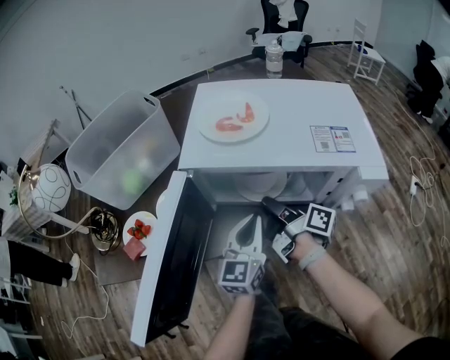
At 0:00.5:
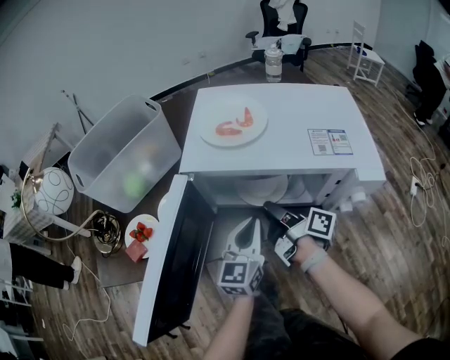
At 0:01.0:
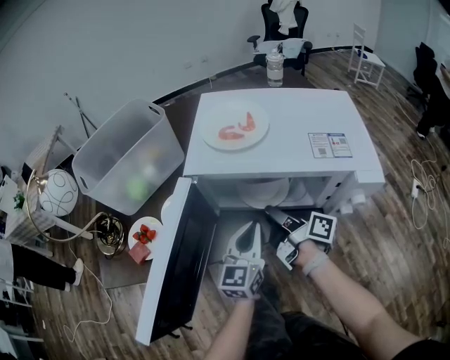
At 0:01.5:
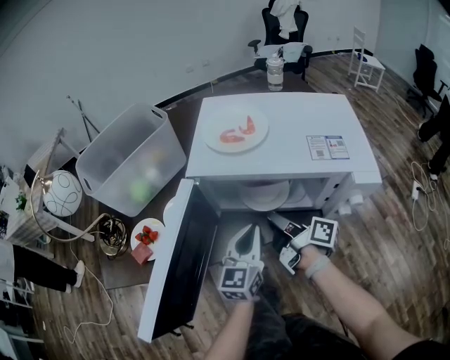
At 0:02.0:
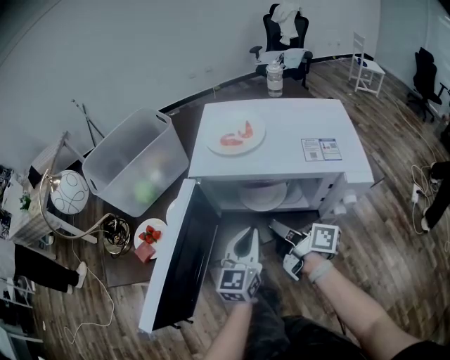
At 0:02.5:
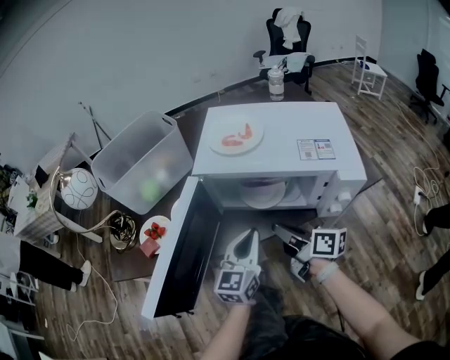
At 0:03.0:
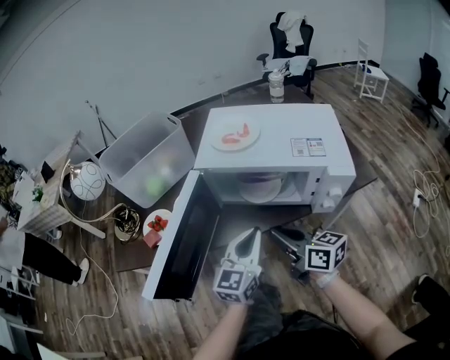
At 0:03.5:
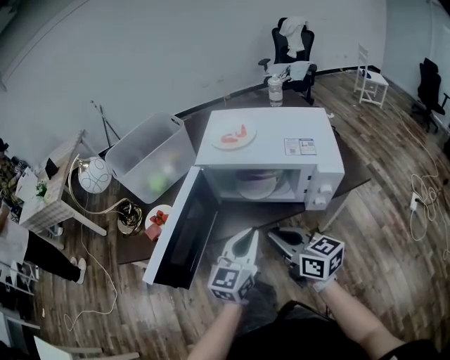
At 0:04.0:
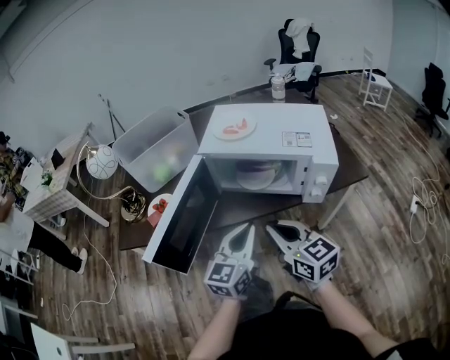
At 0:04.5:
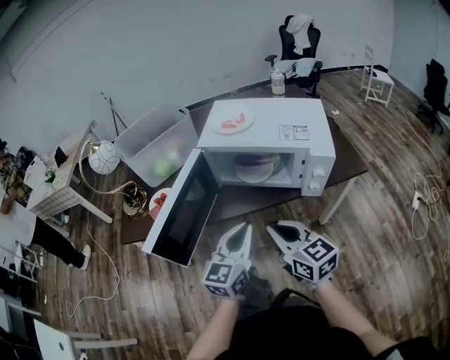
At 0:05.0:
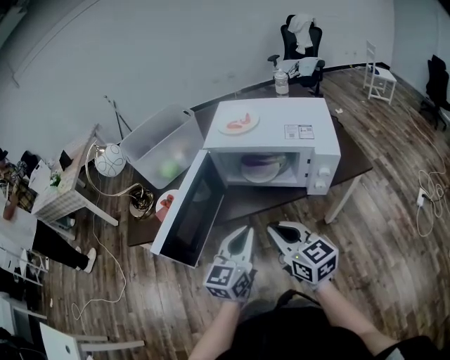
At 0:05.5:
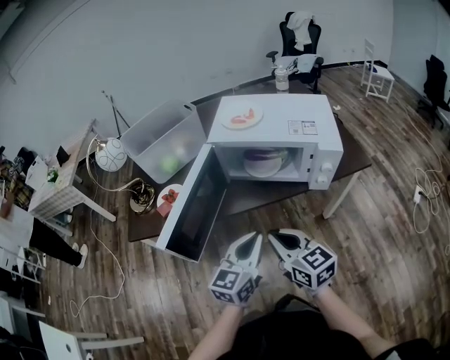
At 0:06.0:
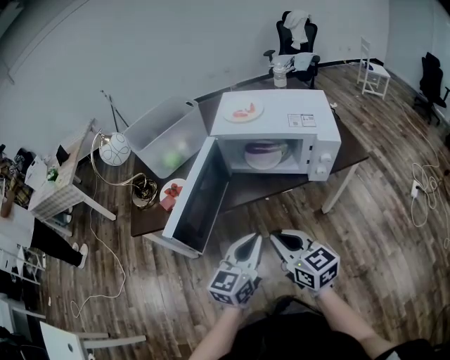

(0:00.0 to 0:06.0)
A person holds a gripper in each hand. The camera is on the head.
0:02.0 - 0:04.0: The left gripper shifts by approximately 15 cm.
0:04.0 - 0:06.0: The left gripper ends up approximately 10 cm from where it was.

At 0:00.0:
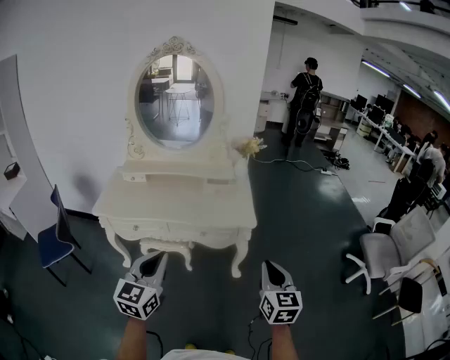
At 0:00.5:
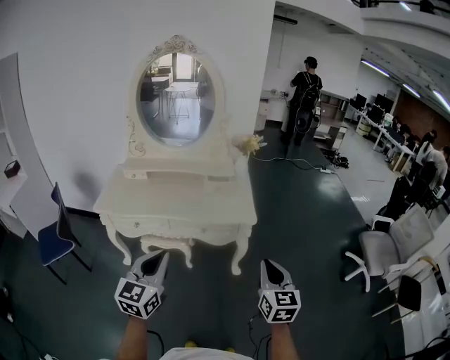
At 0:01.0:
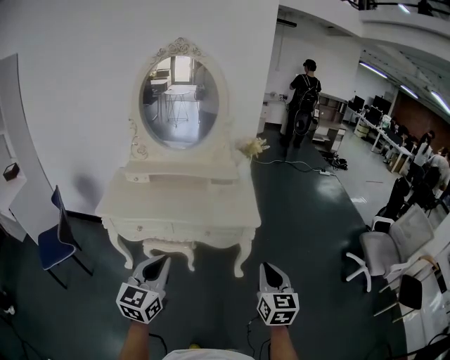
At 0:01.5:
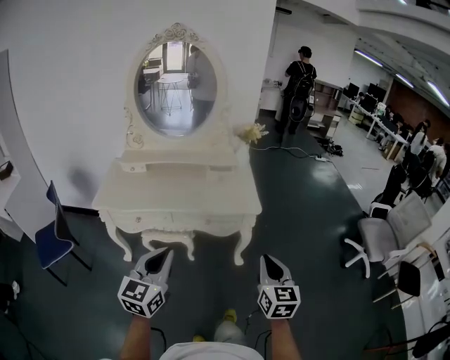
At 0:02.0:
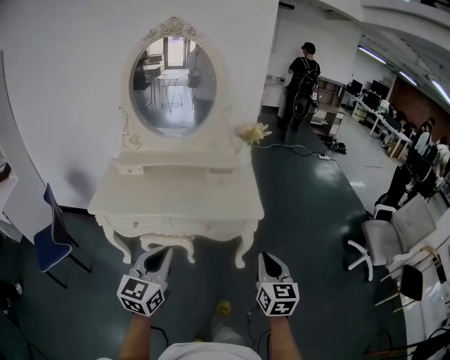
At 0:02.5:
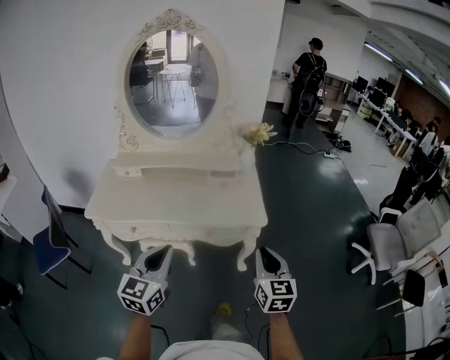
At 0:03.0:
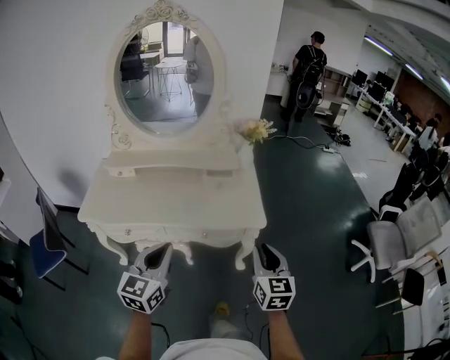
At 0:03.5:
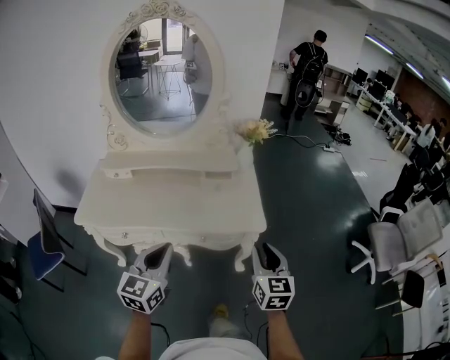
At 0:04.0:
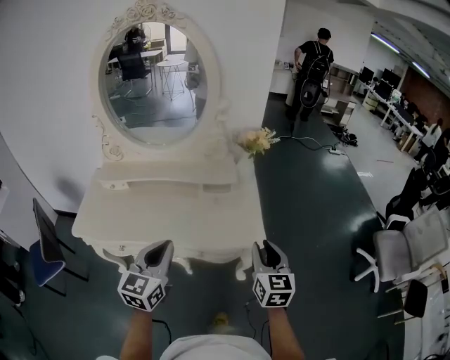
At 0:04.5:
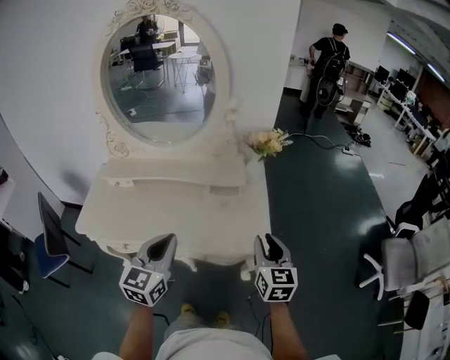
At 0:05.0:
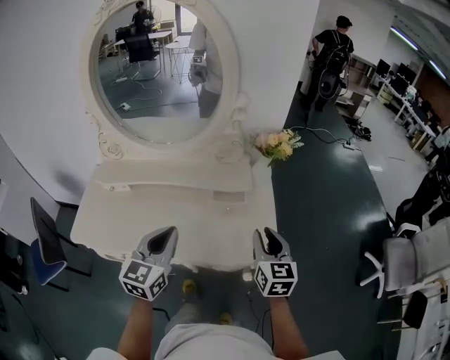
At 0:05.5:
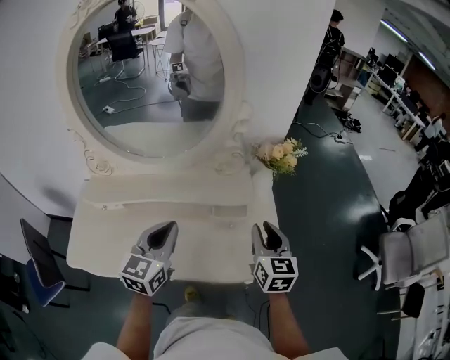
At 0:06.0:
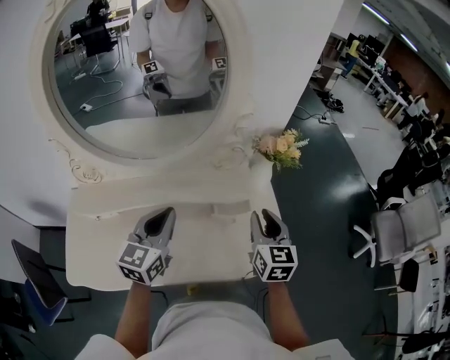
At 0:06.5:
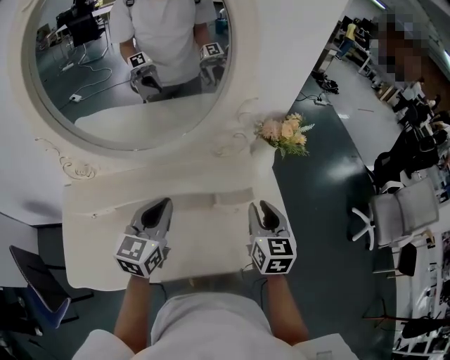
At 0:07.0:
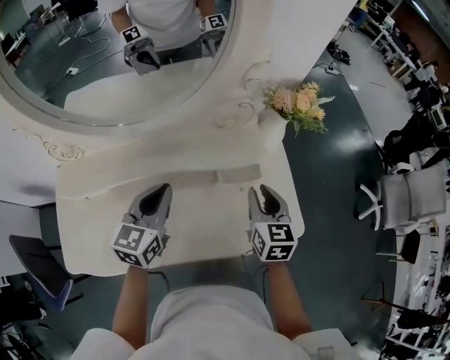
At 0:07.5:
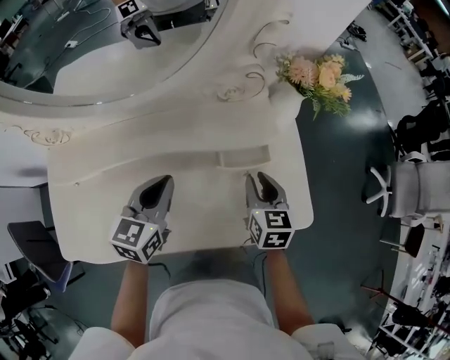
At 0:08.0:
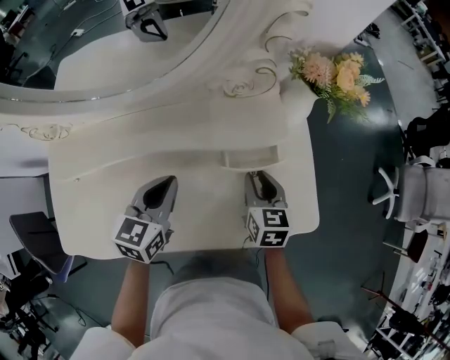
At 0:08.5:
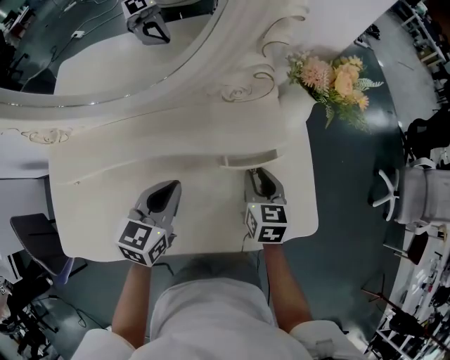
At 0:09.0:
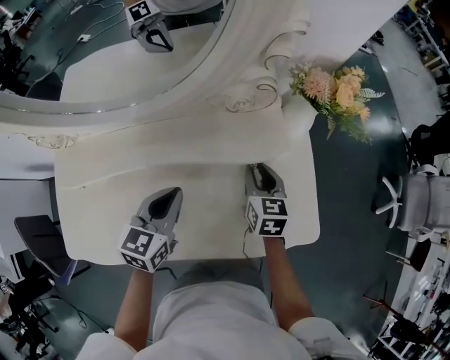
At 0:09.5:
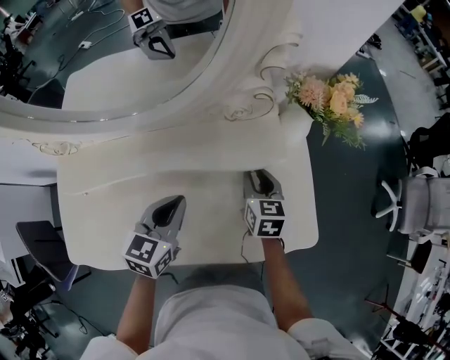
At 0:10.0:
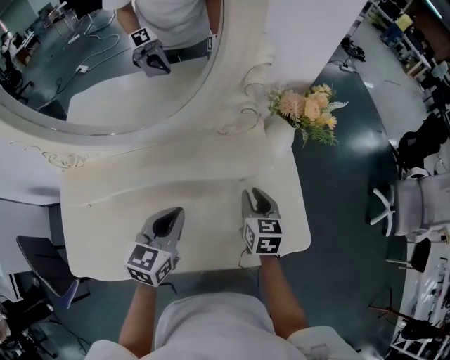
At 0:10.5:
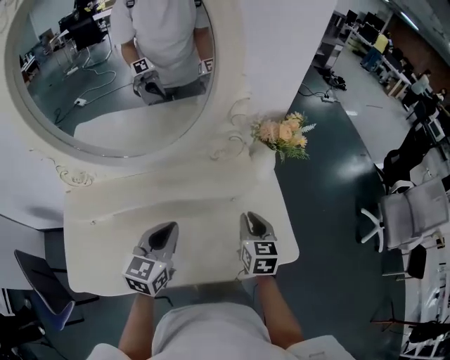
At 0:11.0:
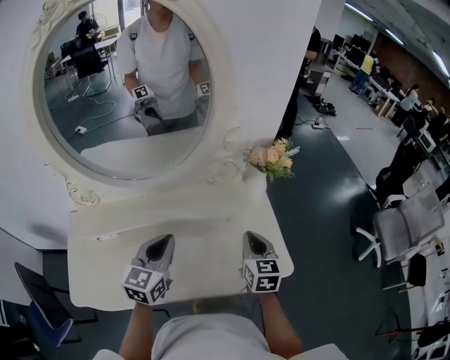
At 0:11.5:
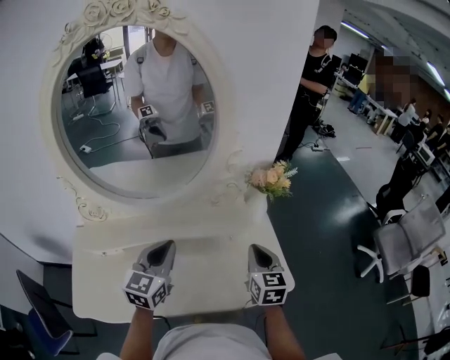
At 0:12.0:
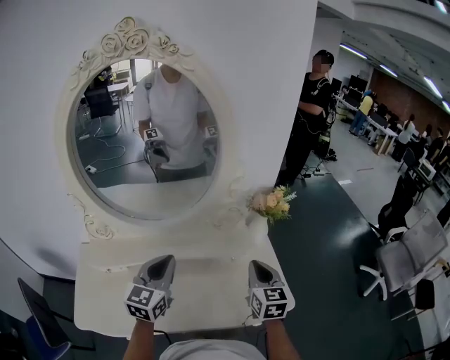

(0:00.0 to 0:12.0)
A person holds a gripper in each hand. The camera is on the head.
0:00.0 - 0:02.0: The right gripper shifts roughly 5 cm to the left, while the left gripper moves forward, about 5 cm.
0:02.0 - 0:04.0: Both grippers travel together forward, some 30 cm. The right gripper opens up.
0:04.0 - 0:06.0: The grippers both shift forward and to the left by roughly 35 cm.
0:06.0 - 0:08.0: The two grippers go approximately 20 cm downward. The right gripper swivels some 20 degrees. The left gripper swivels some 20 degrees.
0:08.0 - 0:10.0: The left gripper moves approximately 5 cm.
0:10.0 - 0:12.0: The right gripper shifts approximately 25 cm upward and backward, and closes up; the left gripper goes roughly 20 cm upward, and rotates about 20 degrees.

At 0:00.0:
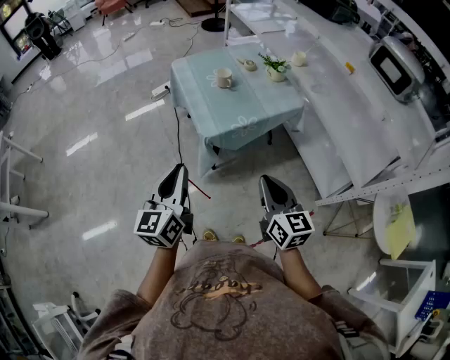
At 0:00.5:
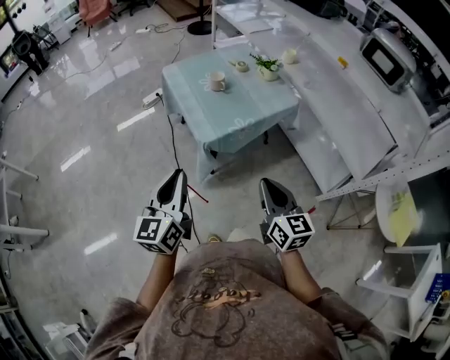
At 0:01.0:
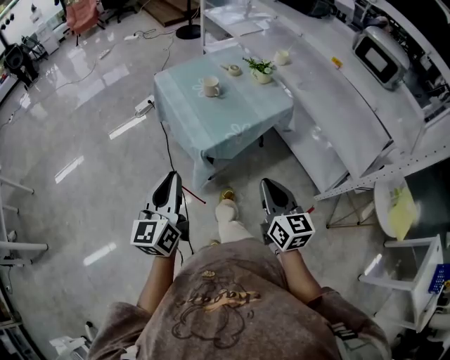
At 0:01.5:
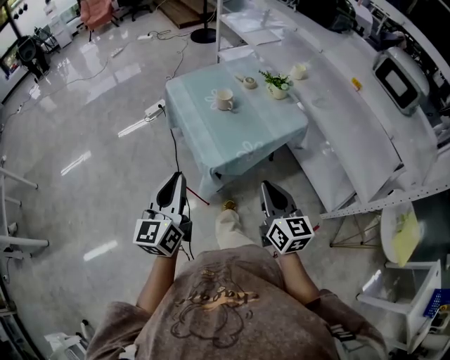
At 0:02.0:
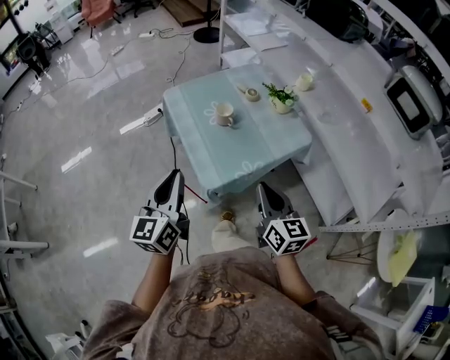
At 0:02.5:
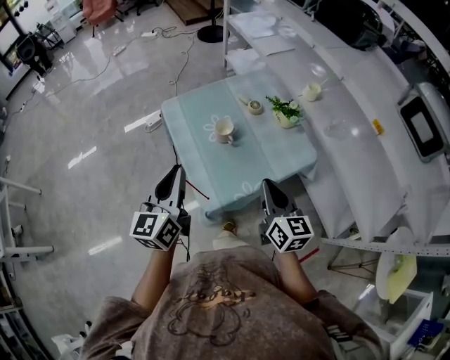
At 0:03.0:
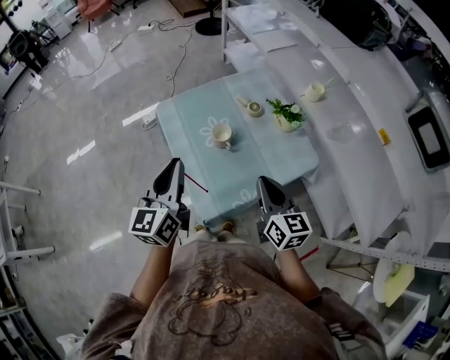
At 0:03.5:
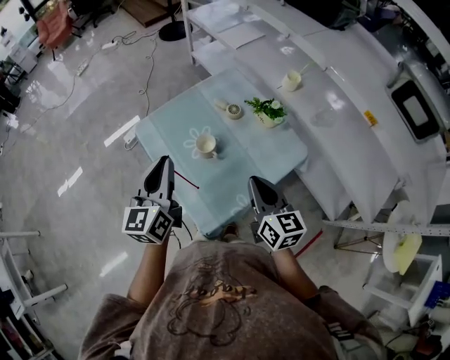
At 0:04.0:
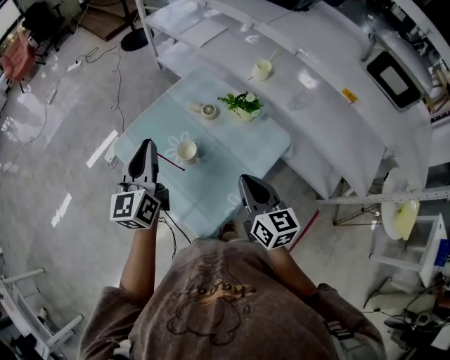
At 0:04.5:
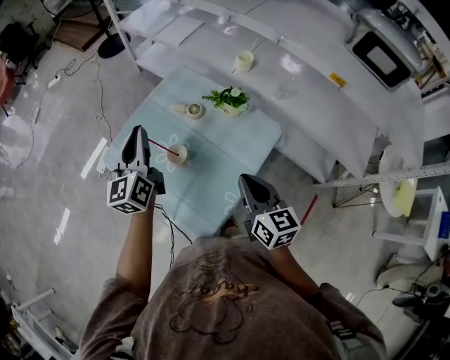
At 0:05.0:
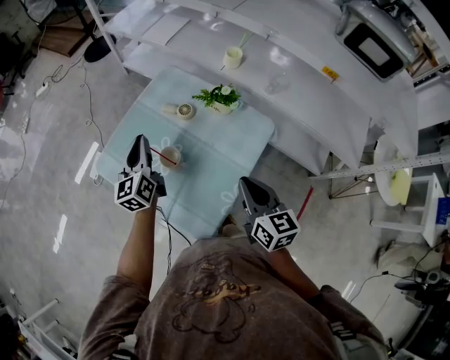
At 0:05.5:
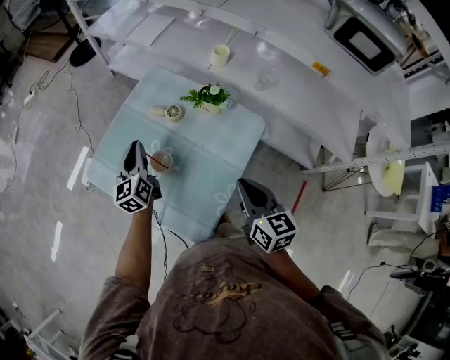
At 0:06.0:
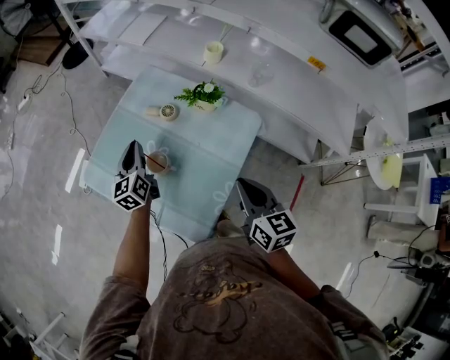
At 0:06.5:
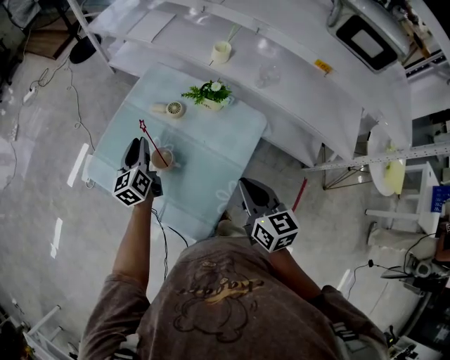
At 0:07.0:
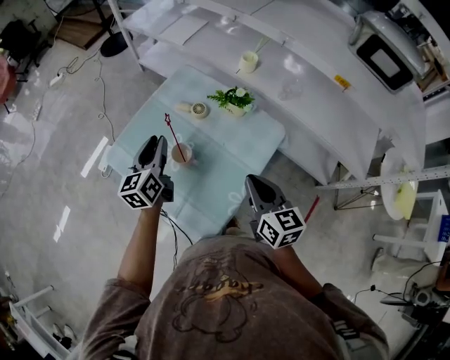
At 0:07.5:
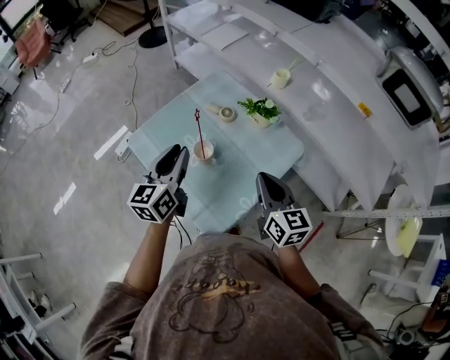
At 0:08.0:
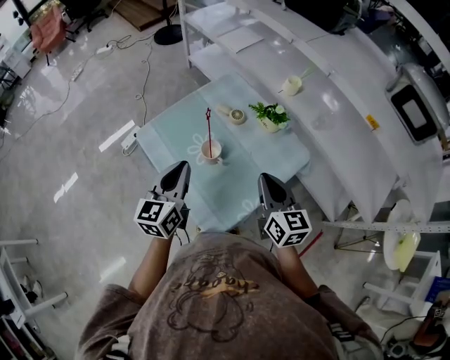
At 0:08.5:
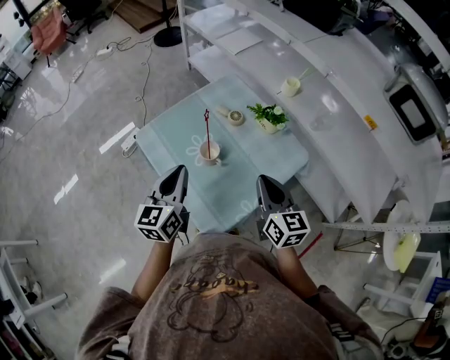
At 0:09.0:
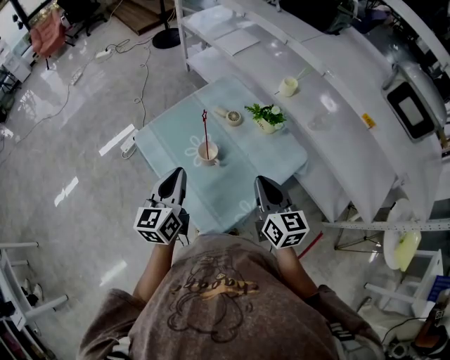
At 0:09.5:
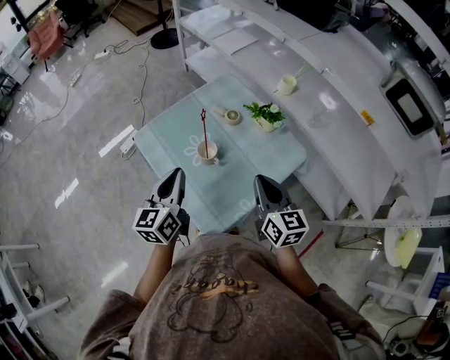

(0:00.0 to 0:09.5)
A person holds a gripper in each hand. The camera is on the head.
0:00.0 - 0:02.0: The grippers both shift forward by some 25 cm.
0:02.0 - 0:04.0: The right gripper goes about 25 cm forward, while the left gripper heads forward, covering roughly 35 cm.
0:04.0 - 0:05.5: The left gripper goes roughly 20 cm downward and forward.
0:05.5 - 0:07.5: The left gripper moves backward and upward, approximately 15 cm.
0:07.5 - 0:09.5: The left gripper heads backward, covering some 5 cm.
